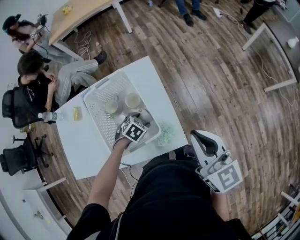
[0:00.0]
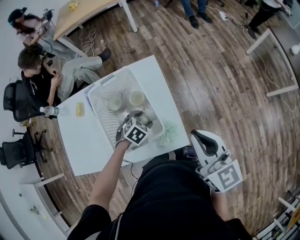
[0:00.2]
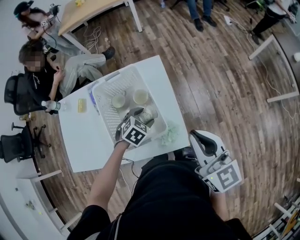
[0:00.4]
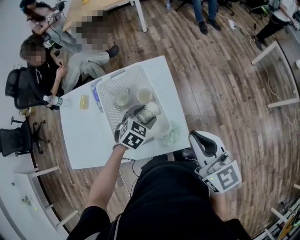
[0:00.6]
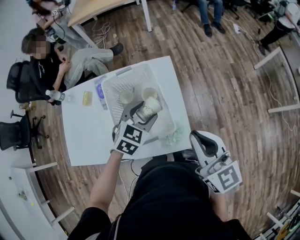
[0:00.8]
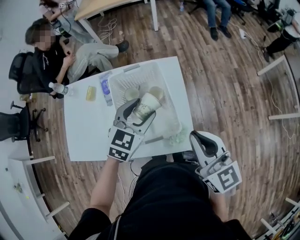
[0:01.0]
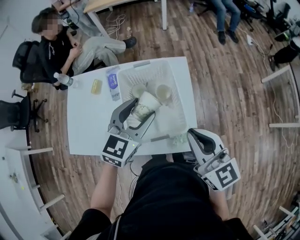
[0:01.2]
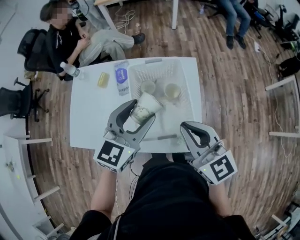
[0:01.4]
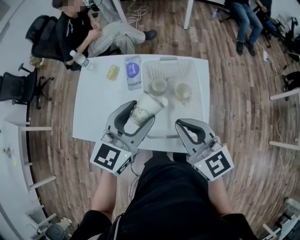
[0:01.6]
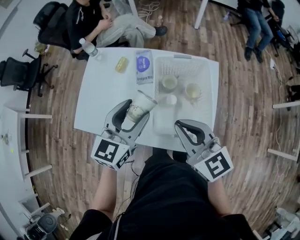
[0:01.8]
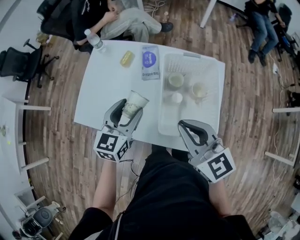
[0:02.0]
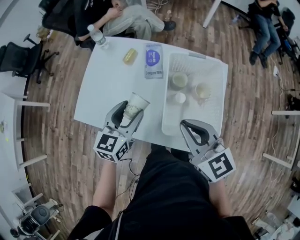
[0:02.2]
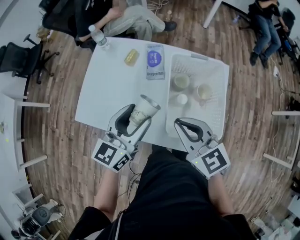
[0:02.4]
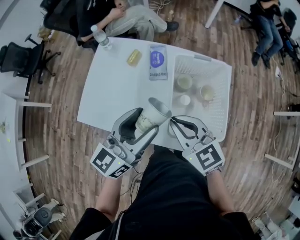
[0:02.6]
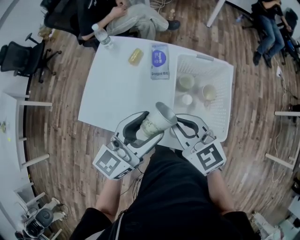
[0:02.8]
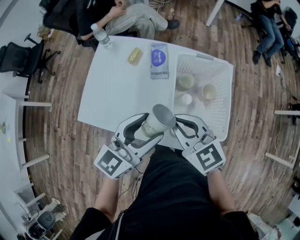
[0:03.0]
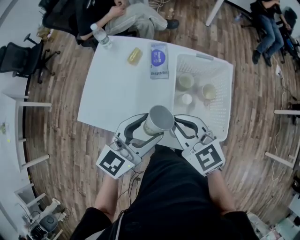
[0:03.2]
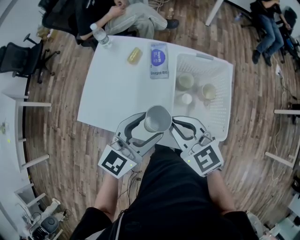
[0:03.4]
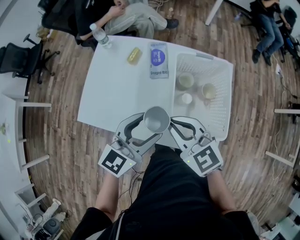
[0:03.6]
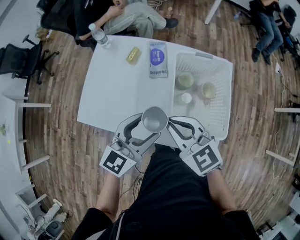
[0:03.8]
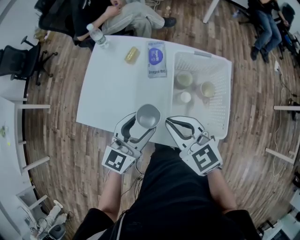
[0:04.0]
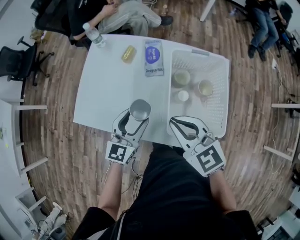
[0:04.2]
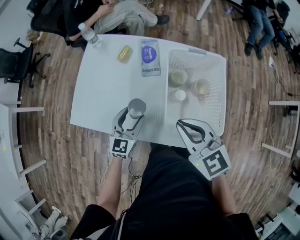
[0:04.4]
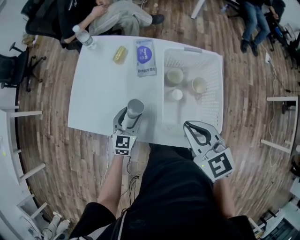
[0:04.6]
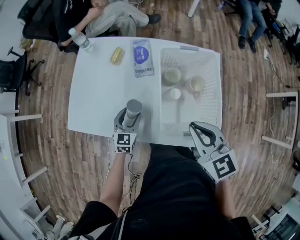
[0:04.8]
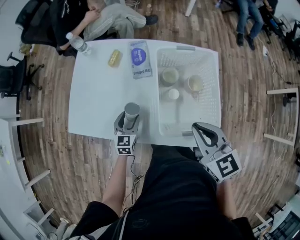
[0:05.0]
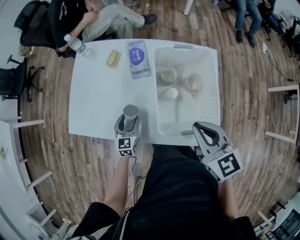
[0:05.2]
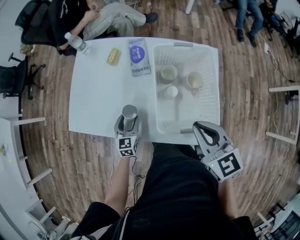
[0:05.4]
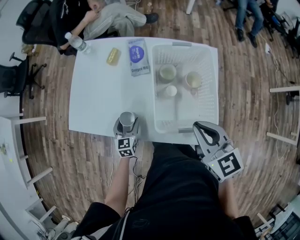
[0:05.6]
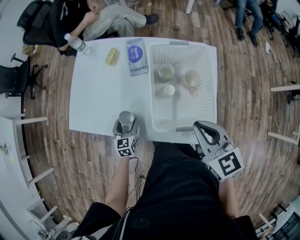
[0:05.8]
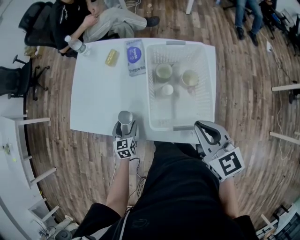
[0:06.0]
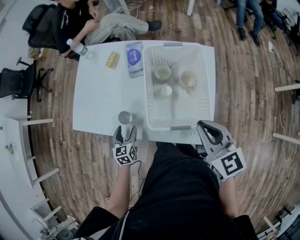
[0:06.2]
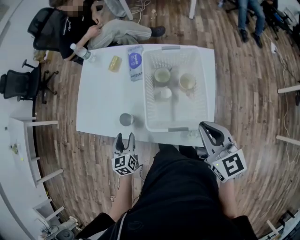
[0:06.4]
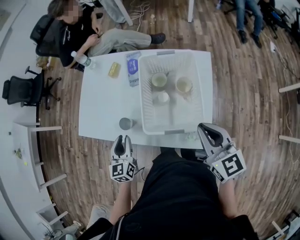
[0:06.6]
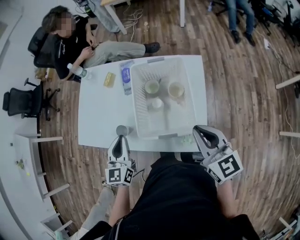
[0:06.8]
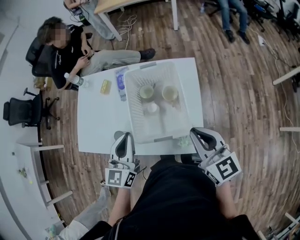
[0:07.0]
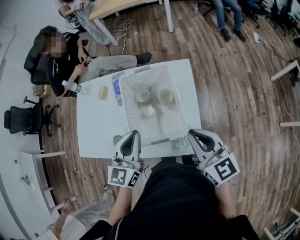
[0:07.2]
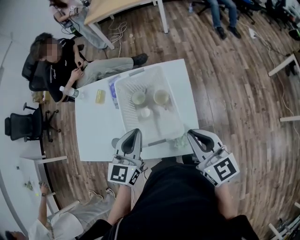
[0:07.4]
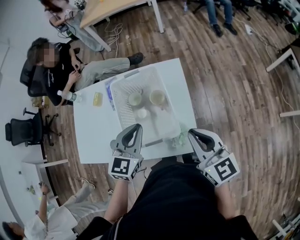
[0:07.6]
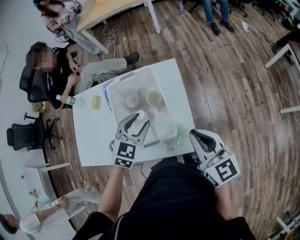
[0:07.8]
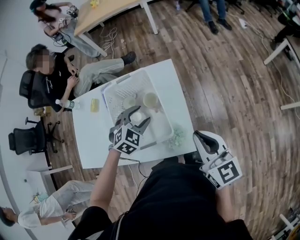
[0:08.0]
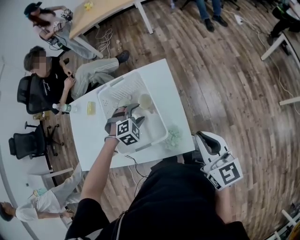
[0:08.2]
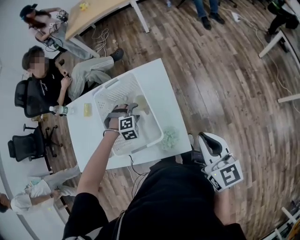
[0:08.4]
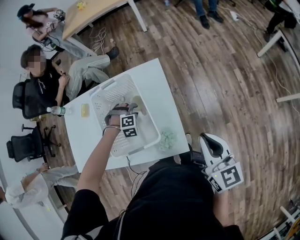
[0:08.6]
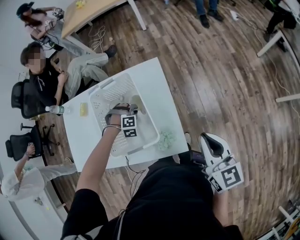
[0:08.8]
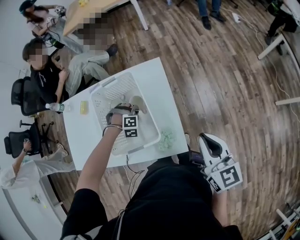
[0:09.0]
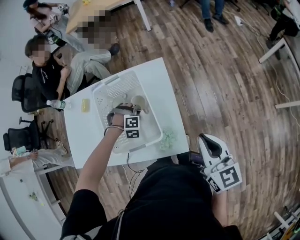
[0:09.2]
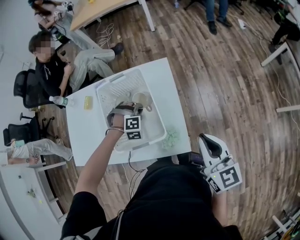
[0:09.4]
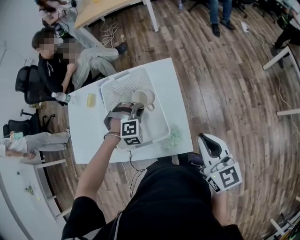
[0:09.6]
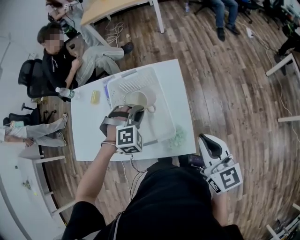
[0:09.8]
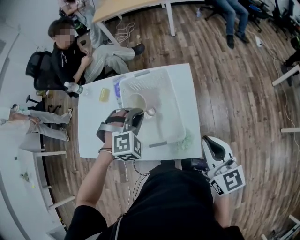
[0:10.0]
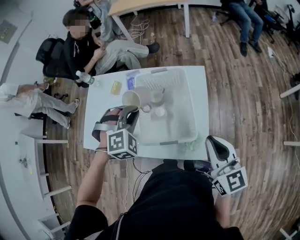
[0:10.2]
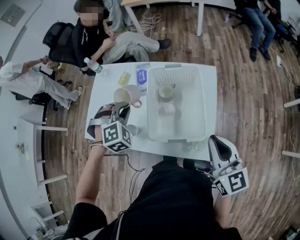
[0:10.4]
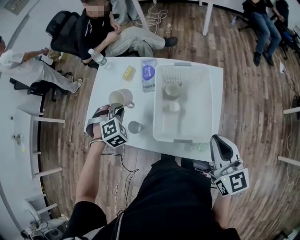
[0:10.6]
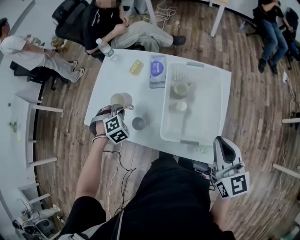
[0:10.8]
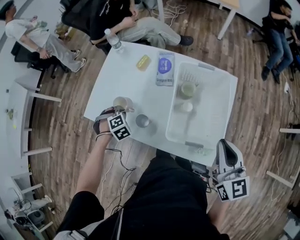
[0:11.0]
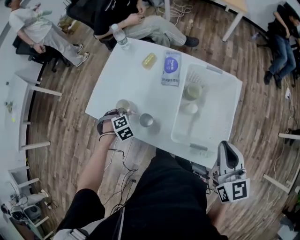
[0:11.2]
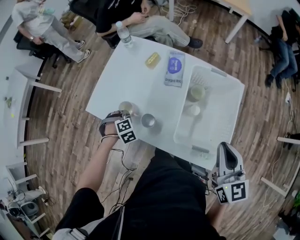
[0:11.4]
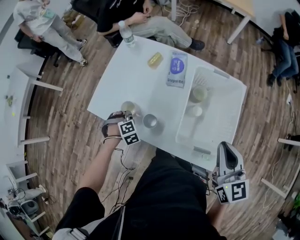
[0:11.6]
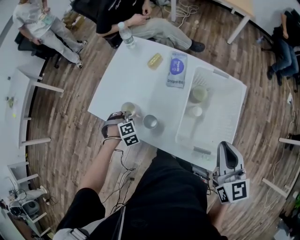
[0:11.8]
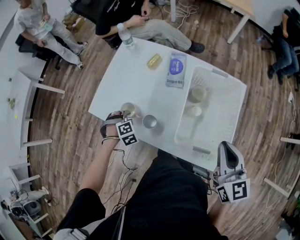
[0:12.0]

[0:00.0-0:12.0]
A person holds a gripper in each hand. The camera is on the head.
0:00.0 to 0:01.6: The left gripper shifts some 30 cm upward, and angles its fingers upward, by approximately 60 degrees. The right gripper ends up about 25 cm from where it was, and swivels some 30 degrees.
0:01.6 to 0:03.0: The right gripper is displaced to the left and downward by approximately 15 cm; the left gripper heads to the left, covering about 10 cm.
0:03.0 to 0:04.4: The left gripper travels downward by roughly 20 cm, and turns by roughly 20 degrees.
0:04.4 to 0:06.0: The left gripper is displaced downward by roughly 10 cm, and rotates about 30 degrees. Meanwhile the right gripper heads to the right and backward, covering roughly 15 cm.
0:06.0 to 0:07.6: The right gripper shifts about 10 cm to the right, and changes its angle by some 20 degrees; the left gripper is displaced upward and to the right by about 40 cm, turns by about 40 degrees, and closes.
0:07.6 to 0:09.0: The right gripper moves to the right, roughly 10 cm; the left gripper travels downward by some 25 cm, twists approximately 80 degrees clockwise, seen from behind, and opens, then closes again.
0:09.0 to 0:10.4: The left gripper travels upward and to the left by some 30 cm, and rotates approximately 40 degrees. The right gripper shifts some 15 cm to the left.
0:10.4 to 0:12.0: The right gripper ends up about 10 cm from where it was, while the left gripper goes about 20 cm downward, and swivels some 30 degrees.

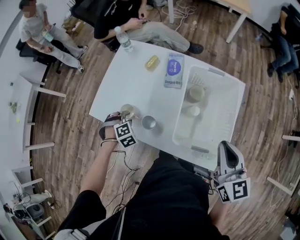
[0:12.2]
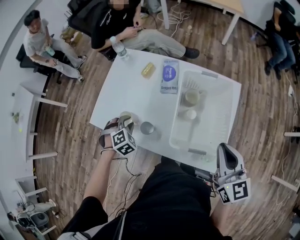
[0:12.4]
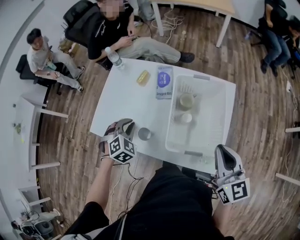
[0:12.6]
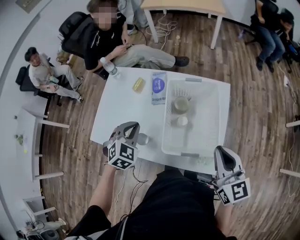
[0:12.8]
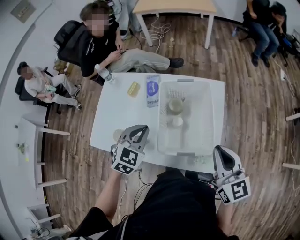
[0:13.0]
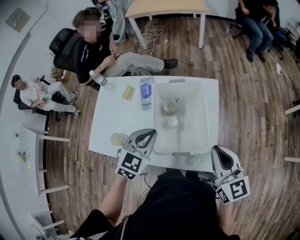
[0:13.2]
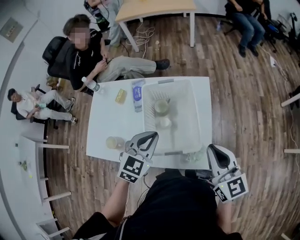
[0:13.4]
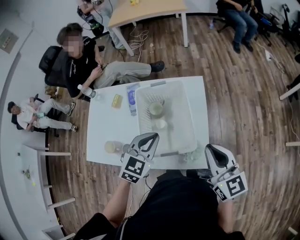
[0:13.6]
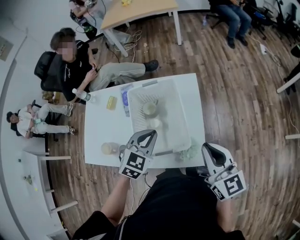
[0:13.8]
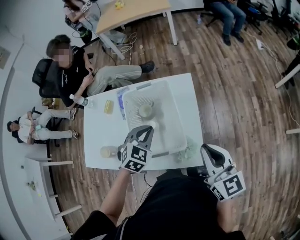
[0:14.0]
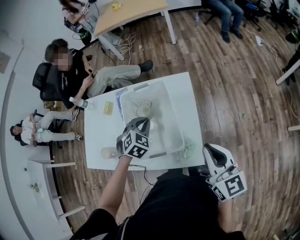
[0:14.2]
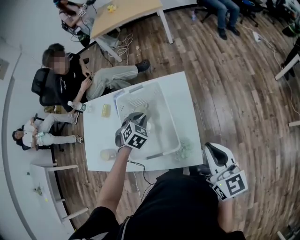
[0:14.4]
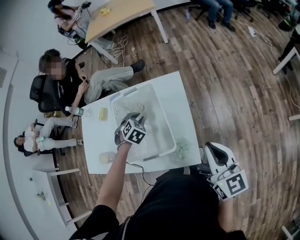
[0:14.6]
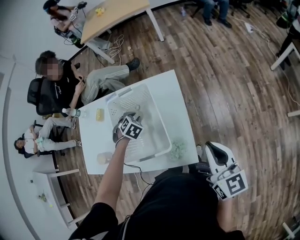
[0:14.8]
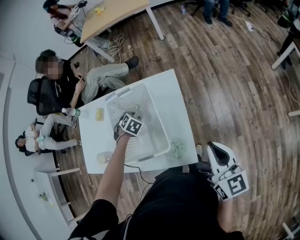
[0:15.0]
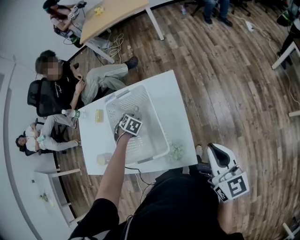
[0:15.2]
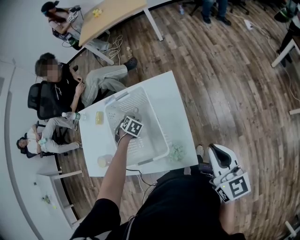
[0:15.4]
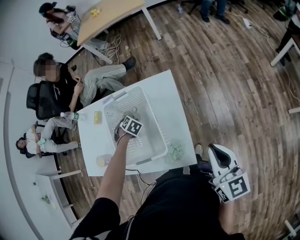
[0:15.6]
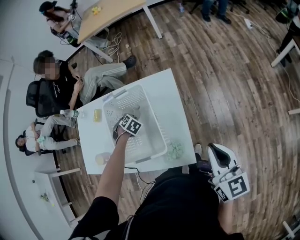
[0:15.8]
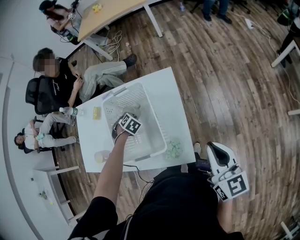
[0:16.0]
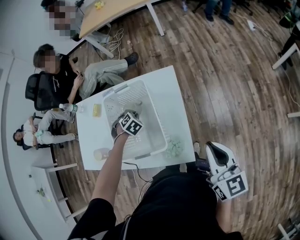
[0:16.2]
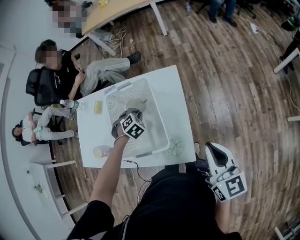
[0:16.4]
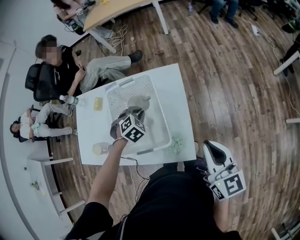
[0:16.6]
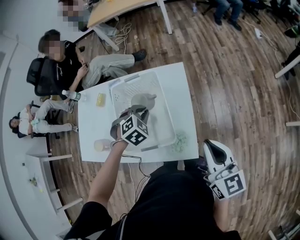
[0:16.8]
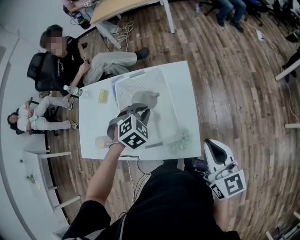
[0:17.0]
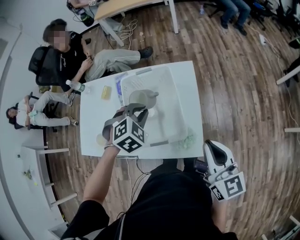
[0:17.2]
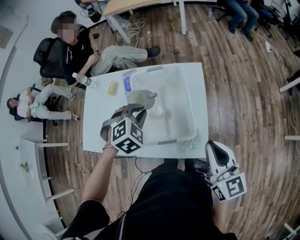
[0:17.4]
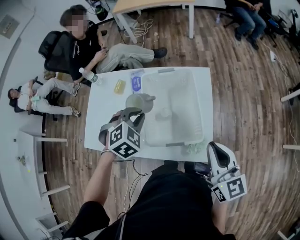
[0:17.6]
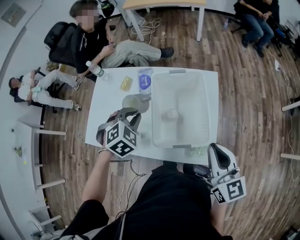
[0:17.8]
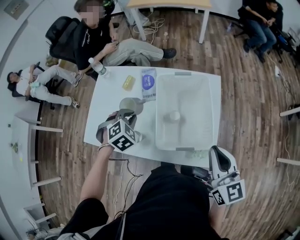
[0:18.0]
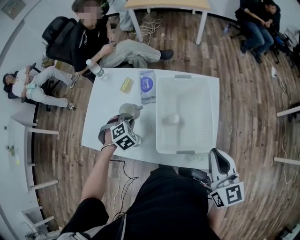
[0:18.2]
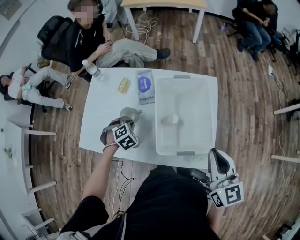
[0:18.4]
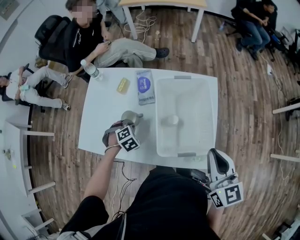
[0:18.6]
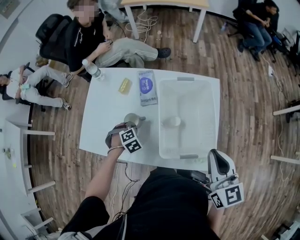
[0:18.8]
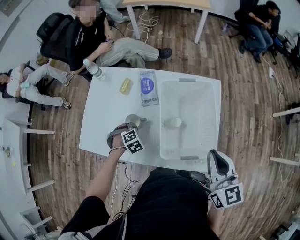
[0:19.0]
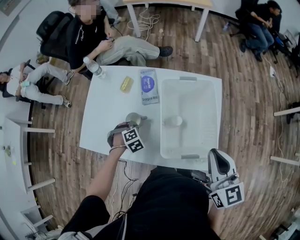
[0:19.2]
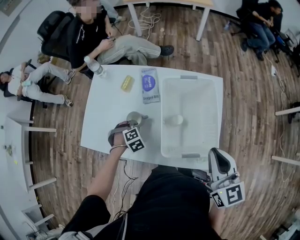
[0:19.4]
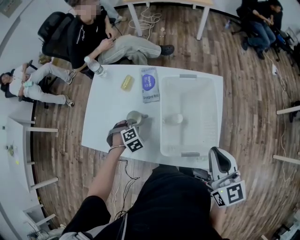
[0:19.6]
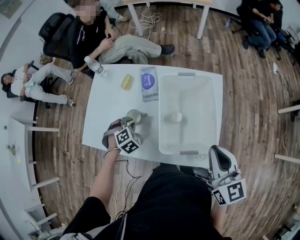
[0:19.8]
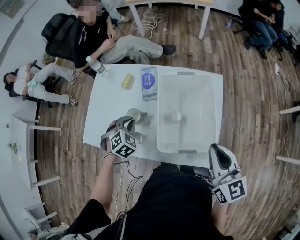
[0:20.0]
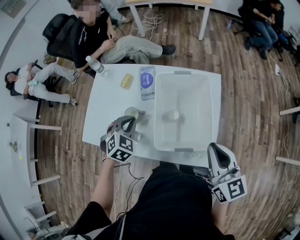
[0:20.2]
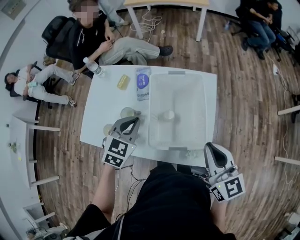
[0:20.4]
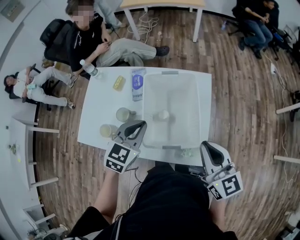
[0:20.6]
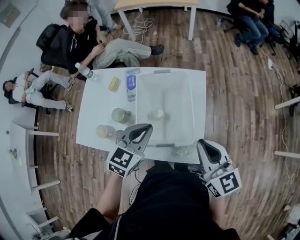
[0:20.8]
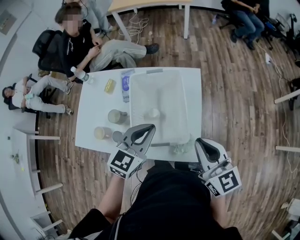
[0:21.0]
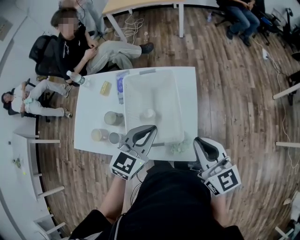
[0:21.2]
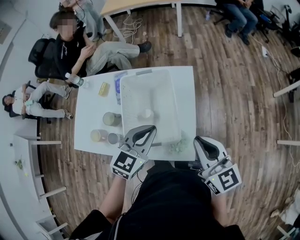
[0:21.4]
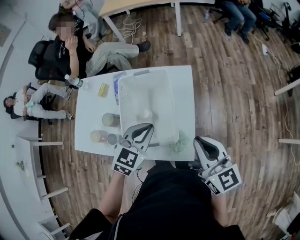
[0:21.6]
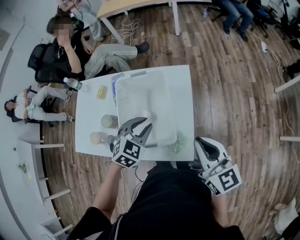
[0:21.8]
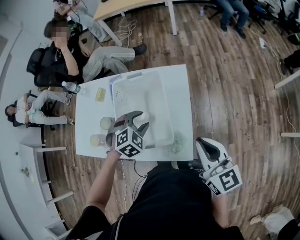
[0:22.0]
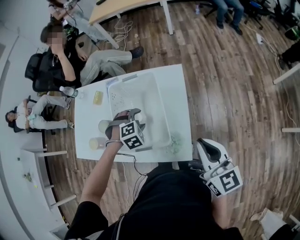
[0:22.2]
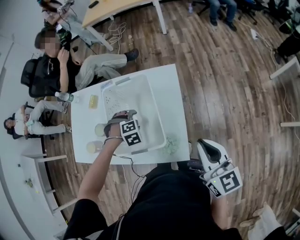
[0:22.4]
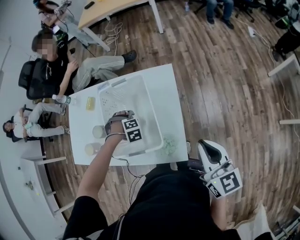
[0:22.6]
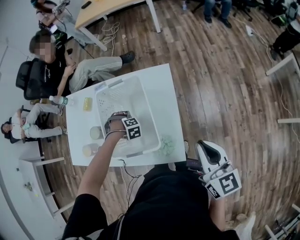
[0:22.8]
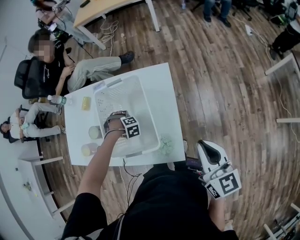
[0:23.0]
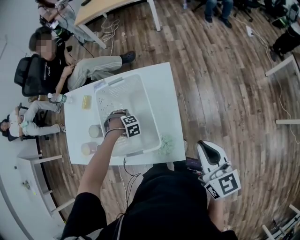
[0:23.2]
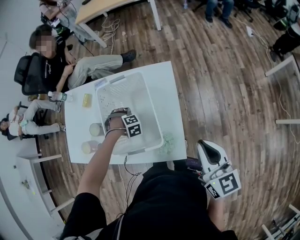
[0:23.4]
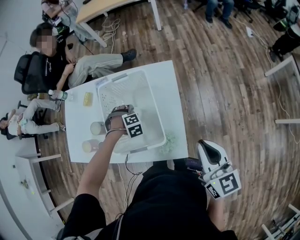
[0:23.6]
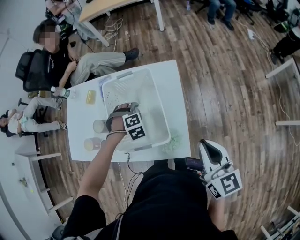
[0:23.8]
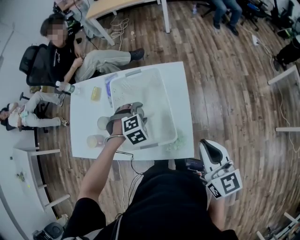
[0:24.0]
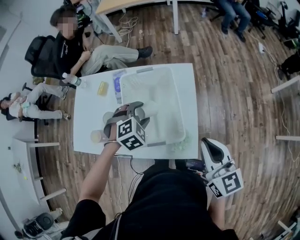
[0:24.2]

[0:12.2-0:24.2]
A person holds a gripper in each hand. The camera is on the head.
0:12.2 to 0:13.8: The right gripper changes place by about 15 cm; the left gripper shifts by roughly 40 cm, tilts its fingers roughly 30 degrees upward, and closes.
0:13.8 to 0:15.2: The left gripper heads downward and forward, covering approximately 25 cm, angles its fingers downward, by roughly 30 degrees, and opens up. The right gripper is displaced to the right by approximately 10 cm.
0:15.2 to 0:16.6: The left gripper moves upward and backward, about 10 cm, and rotates approximately 20 degrees.
0:16.6 to 0:18.2: The left gripper is displaced to the left by about 25 cm. The right gripper moves to the left, some 20 cm.
0:19.8 to 0:21.2: The right gripper travels to the right by some 10 cm. Meanwhile the left gripper goes some 35 cm to the right and upward, and angles its fingers upward, by some 40 degrees.
0:21.2 to 0:22.6: The left gripper is displaced downward by roughly 25 cm, points its fingers approximately 60 degrees further downward, and opens its fingers; the right gripper changes place by about 10 cm.
0:22.6 to 0:24.2: The left gripper heads upward, covering some 15 cm, and changes its angle by roughly 30 degrees, while the right gripper moves approximately 10 cm.
